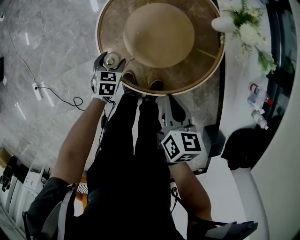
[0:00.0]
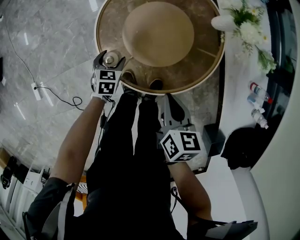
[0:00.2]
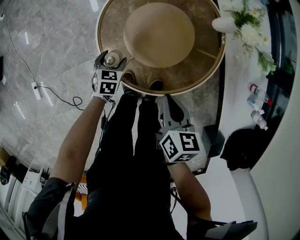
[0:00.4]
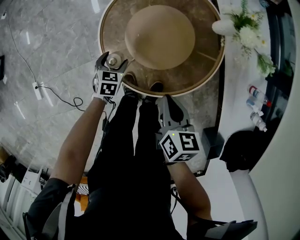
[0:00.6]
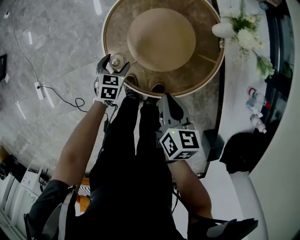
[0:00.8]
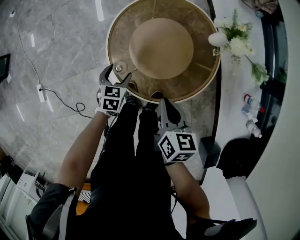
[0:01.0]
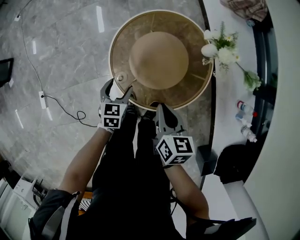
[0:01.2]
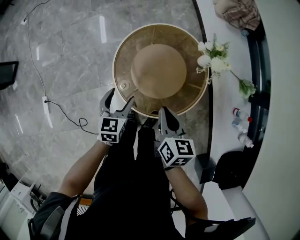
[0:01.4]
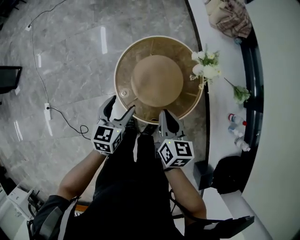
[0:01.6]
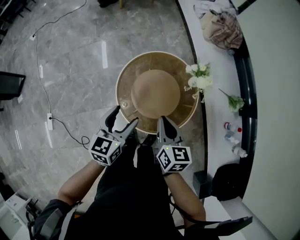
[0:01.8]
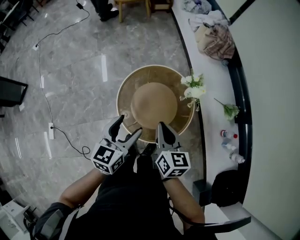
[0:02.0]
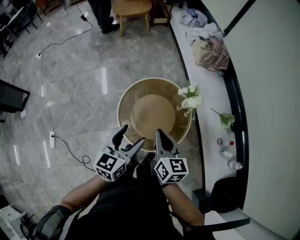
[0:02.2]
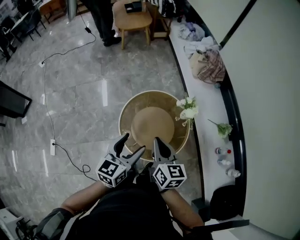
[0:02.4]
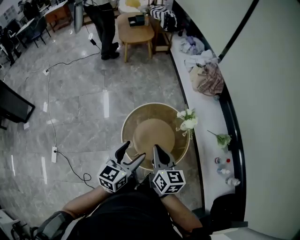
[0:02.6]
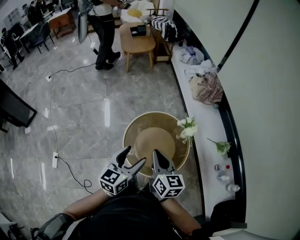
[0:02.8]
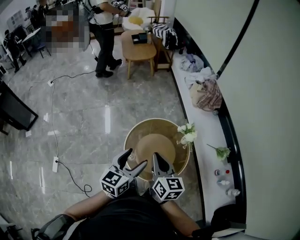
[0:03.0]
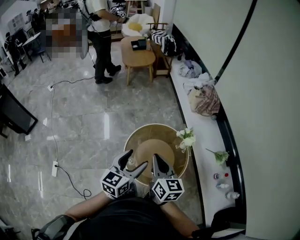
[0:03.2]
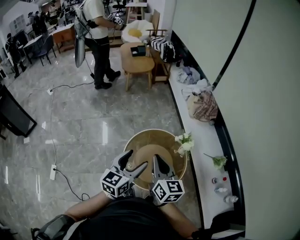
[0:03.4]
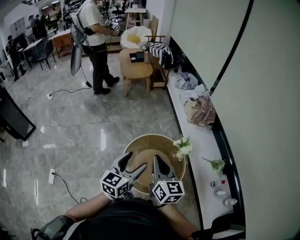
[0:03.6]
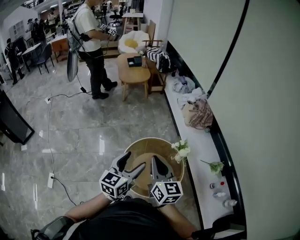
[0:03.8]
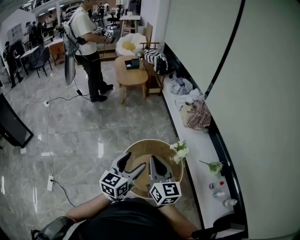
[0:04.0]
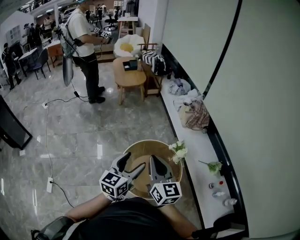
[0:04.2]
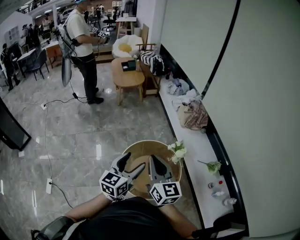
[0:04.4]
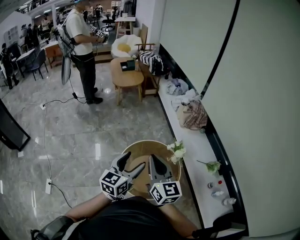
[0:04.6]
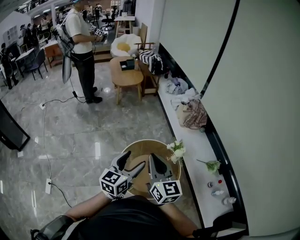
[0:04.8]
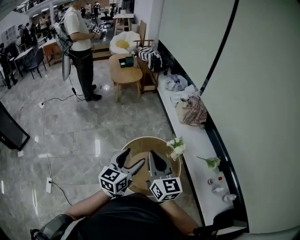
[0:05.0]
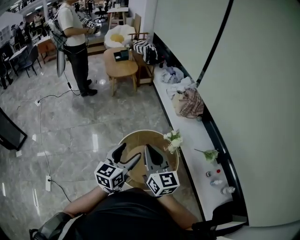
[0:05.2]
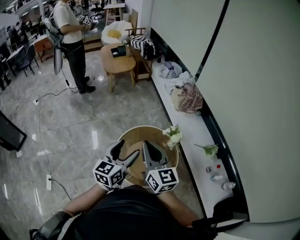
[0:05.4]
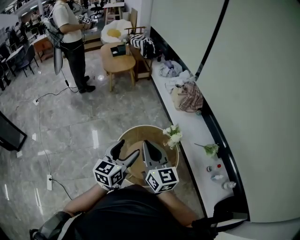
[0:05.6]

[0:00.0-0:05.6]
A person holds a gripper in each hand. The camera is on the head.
0:00.0 to 0:01.4: The right gripper heads upward, covering approximately 10 cm; the left gripper travels upward by roughly 25 cm, and changes its angle by about 20 degrees.
0:01.4 to 0:02.8: Both grippers move upward, some 30 cm. The right gripper rotates about 20 degrees, while the left gripper swivels about 30 degrees.
0:02.8 to 0:04.2: The right gripper moves upward, some 10 cm, and swivels about 20 degrees; the left gripper heads upward, covering some 5 cm.
0:04.2 to 0:05.6: The grippers make only small movements.

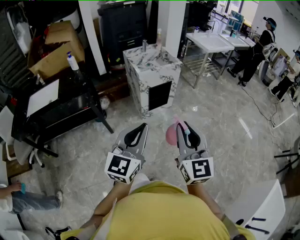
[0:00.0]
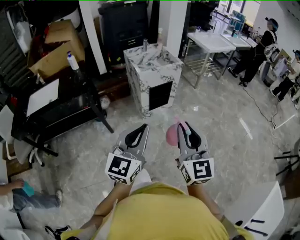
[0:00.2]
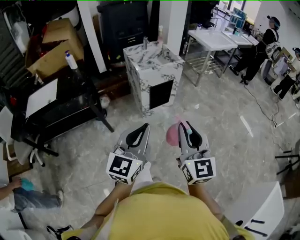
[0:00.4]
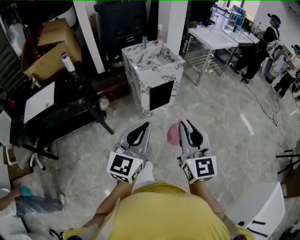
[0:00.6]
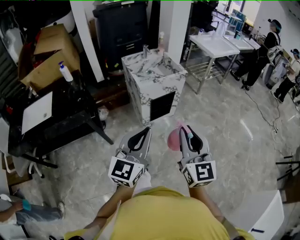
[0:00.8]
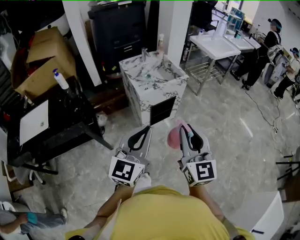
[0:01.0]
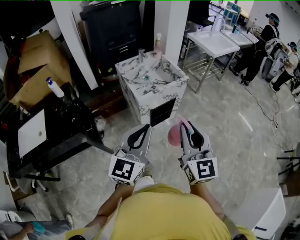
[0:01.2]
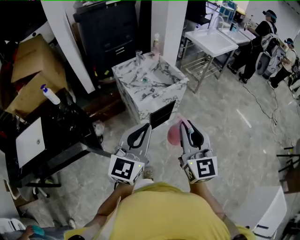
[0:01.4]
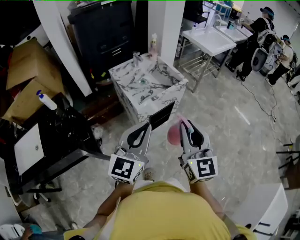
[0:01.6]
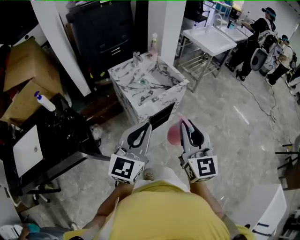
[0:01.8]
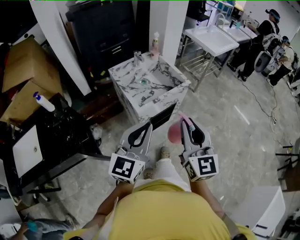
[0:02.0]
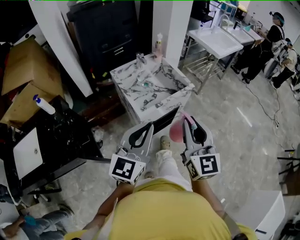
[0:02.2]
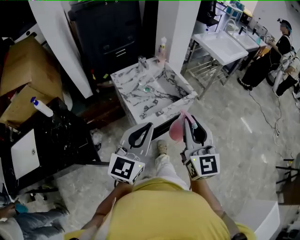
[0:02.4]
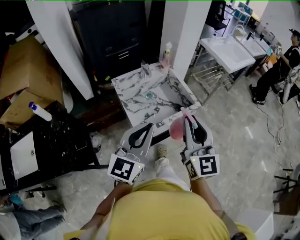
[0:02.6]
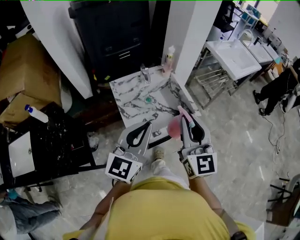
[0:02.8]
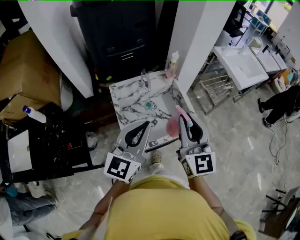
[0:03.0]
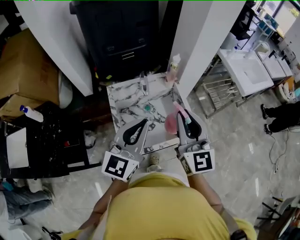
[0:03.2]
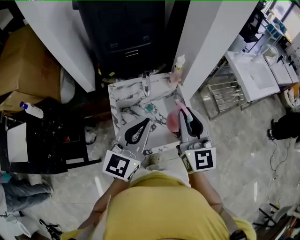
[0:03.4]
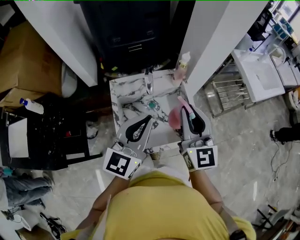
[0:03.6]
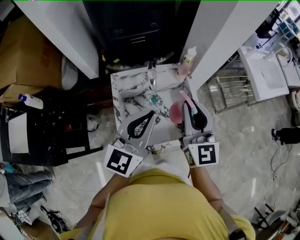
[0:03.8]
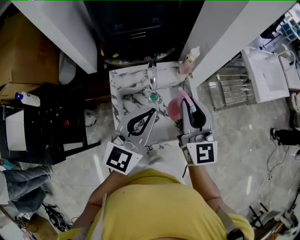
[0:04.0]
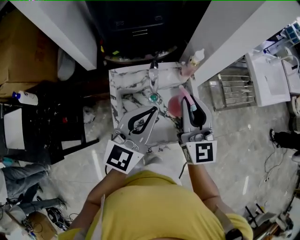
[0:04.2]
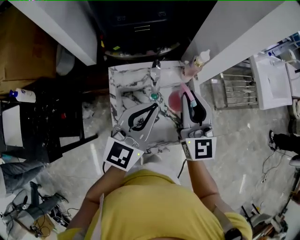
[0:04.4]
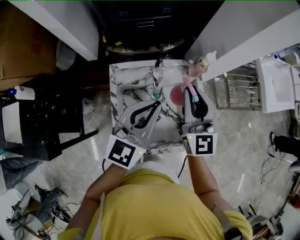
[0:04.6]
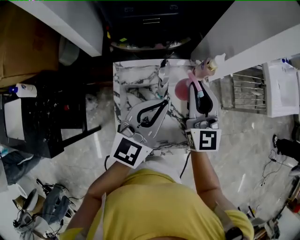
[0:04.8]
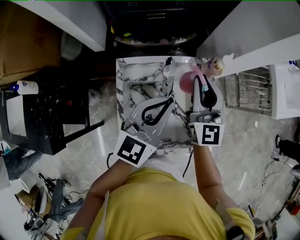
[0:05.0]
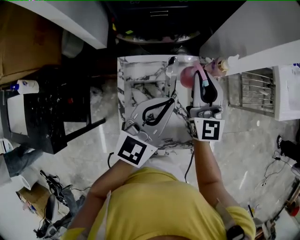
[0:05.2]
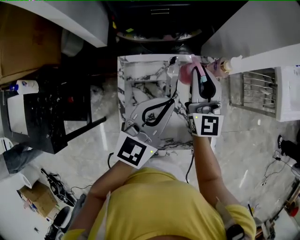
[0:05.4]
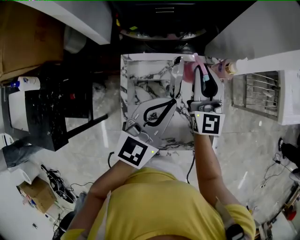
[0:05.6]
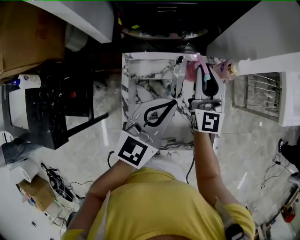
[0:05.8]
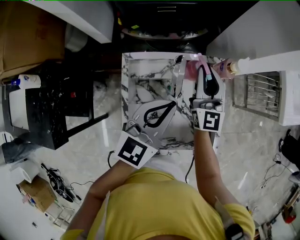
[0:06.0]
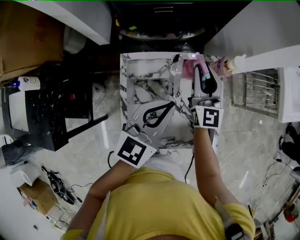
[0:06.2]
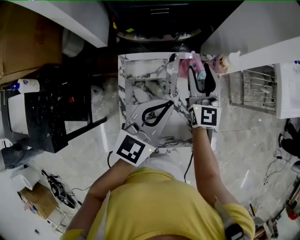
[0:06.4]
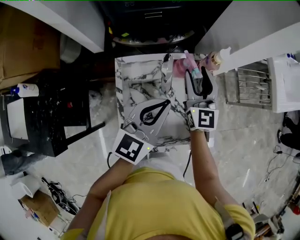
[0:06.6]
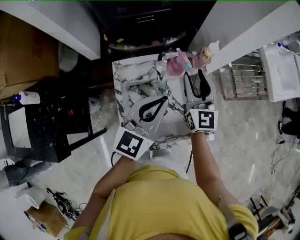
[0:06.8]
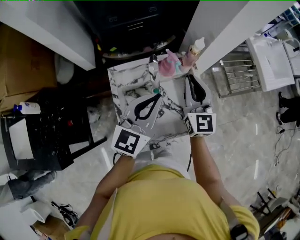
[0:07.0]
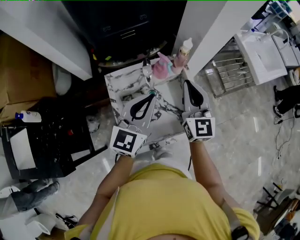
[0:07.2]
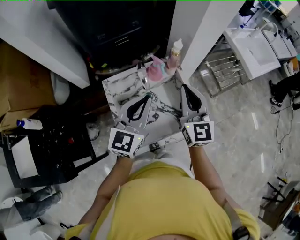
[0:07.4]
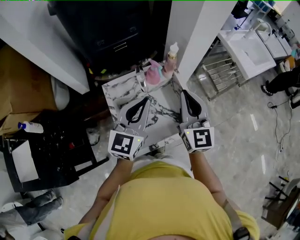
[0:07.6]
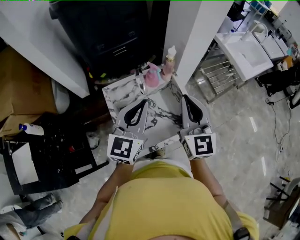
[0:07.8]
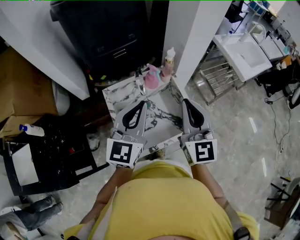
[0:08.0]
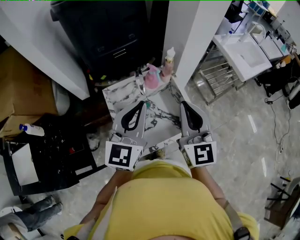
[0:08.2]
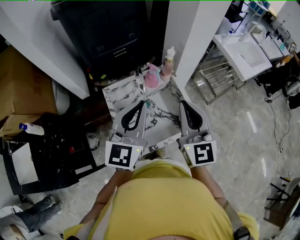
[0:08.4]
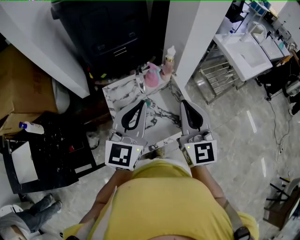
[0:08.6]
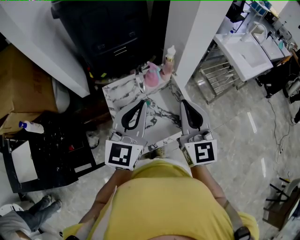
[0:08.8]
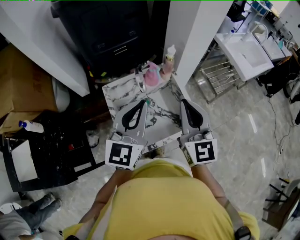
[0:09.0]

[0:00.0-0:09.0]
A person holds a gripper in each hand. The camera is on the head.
0:00.0 to 0:01.6: Both grippers move forward, about 40 cm.
0:01.6 to 0:03.0: Both grippers travel together forward, approximately 35 cm.
0:03.0 to 0:04.4: The left gripper moves forward, roughly 15 cm, while the right gripper travels forward and downward by about 25 cm.
0:04.4 to 0:06.0: The right gripper shifts roughly 15 cm forward and downward; the left gripper goes some 5 cm downward.
0:06.0 to 0:07.6: The right gripper travels backward, upward and to the right by approximately 25 cm, and opens, then closes again. The left gripper heads upward and backward, covering approximately 10 cm.
0:07.6 to 0:09.0: The left gripper shifts some 5 cm upward; the right gripper travels backward by some 5 cm.

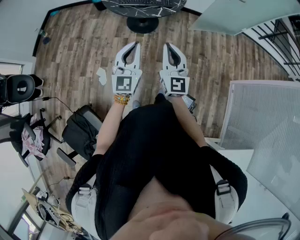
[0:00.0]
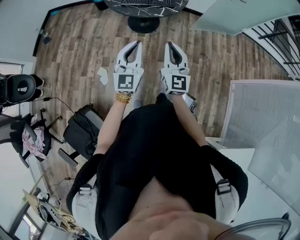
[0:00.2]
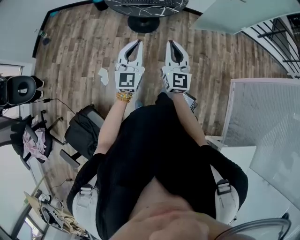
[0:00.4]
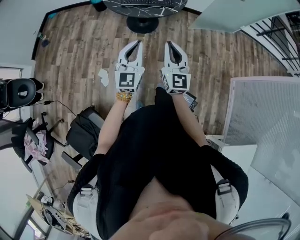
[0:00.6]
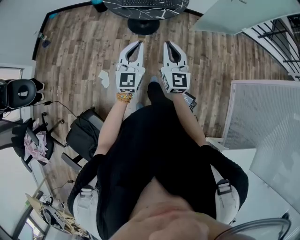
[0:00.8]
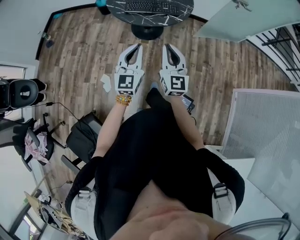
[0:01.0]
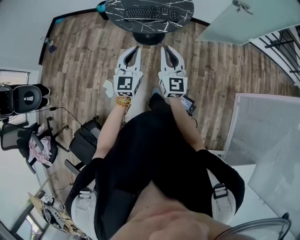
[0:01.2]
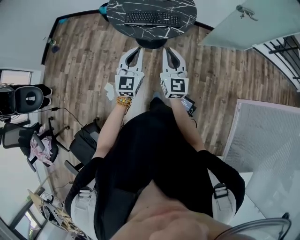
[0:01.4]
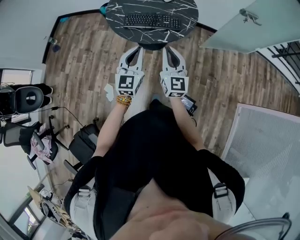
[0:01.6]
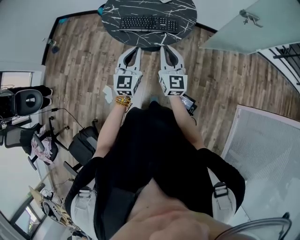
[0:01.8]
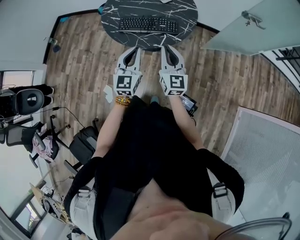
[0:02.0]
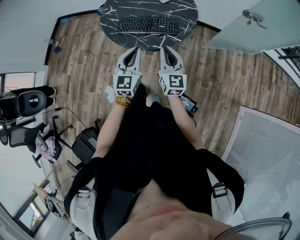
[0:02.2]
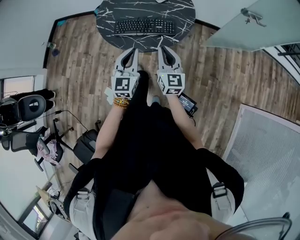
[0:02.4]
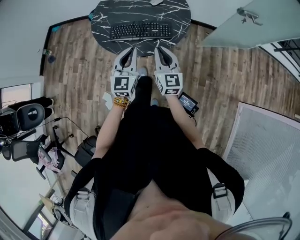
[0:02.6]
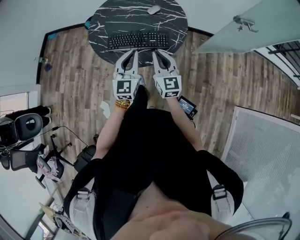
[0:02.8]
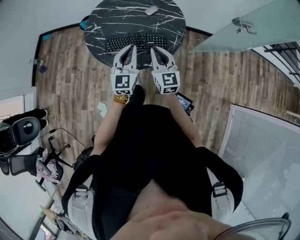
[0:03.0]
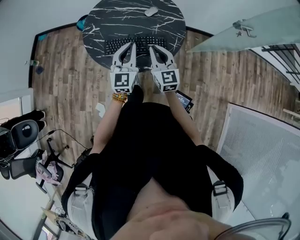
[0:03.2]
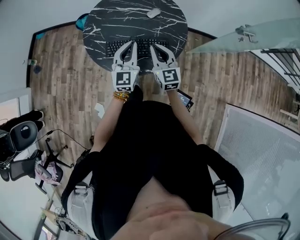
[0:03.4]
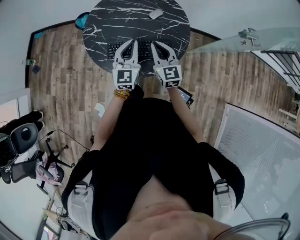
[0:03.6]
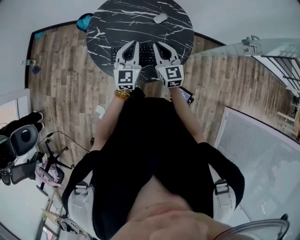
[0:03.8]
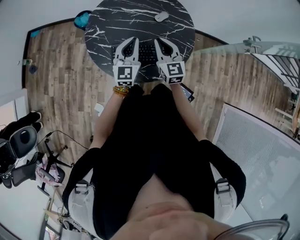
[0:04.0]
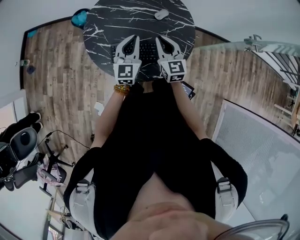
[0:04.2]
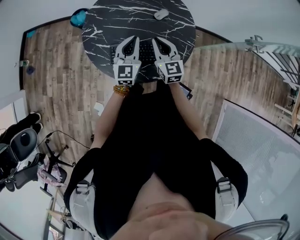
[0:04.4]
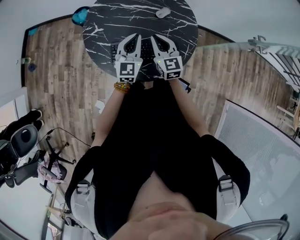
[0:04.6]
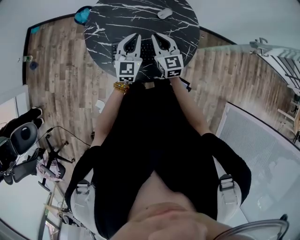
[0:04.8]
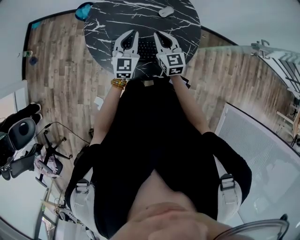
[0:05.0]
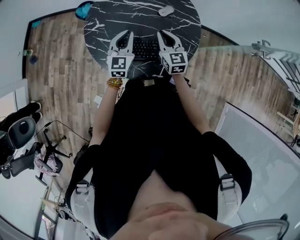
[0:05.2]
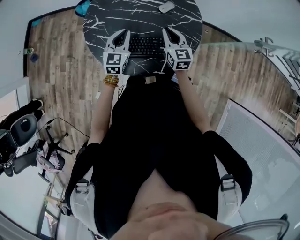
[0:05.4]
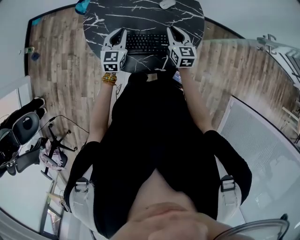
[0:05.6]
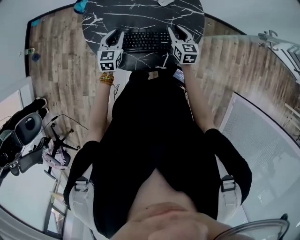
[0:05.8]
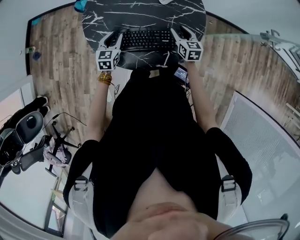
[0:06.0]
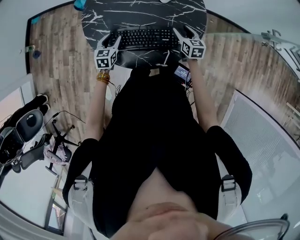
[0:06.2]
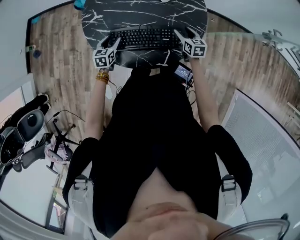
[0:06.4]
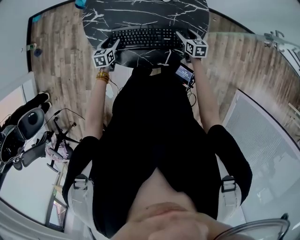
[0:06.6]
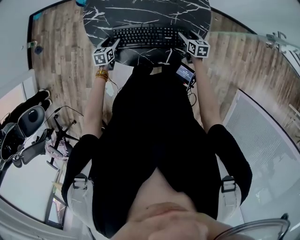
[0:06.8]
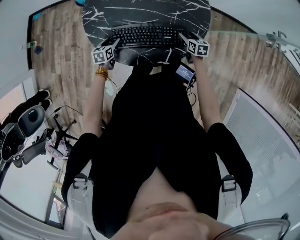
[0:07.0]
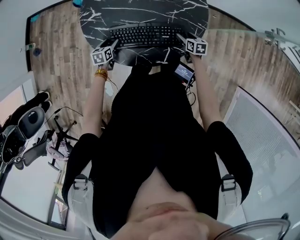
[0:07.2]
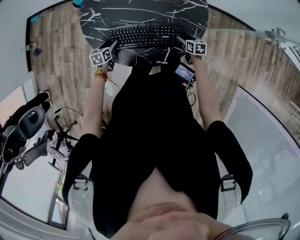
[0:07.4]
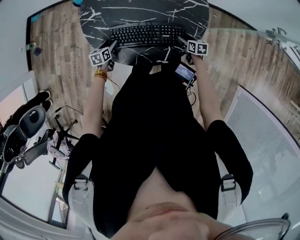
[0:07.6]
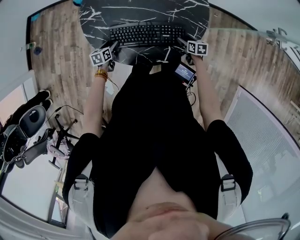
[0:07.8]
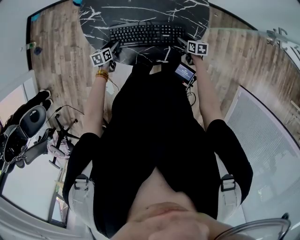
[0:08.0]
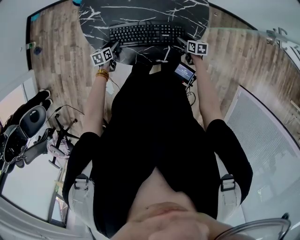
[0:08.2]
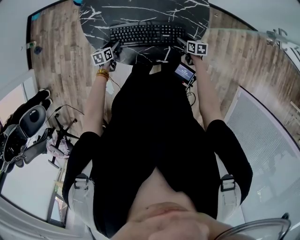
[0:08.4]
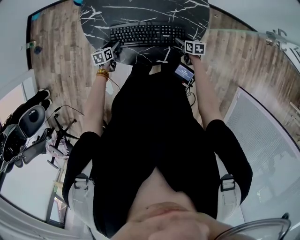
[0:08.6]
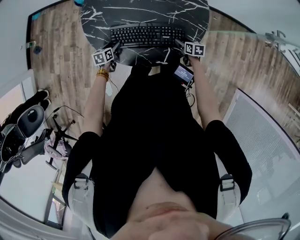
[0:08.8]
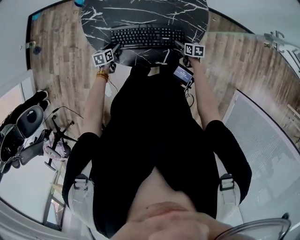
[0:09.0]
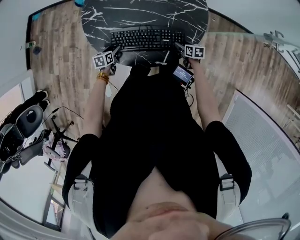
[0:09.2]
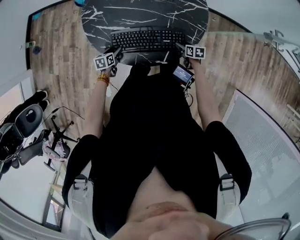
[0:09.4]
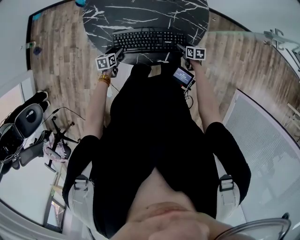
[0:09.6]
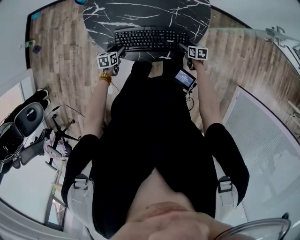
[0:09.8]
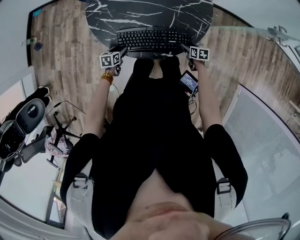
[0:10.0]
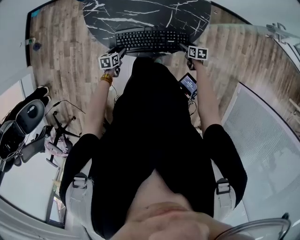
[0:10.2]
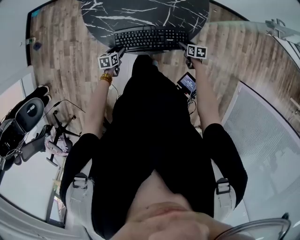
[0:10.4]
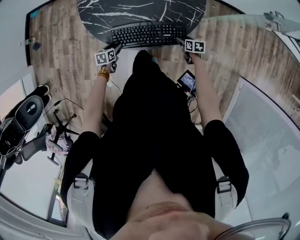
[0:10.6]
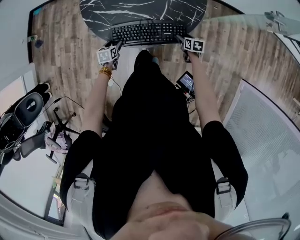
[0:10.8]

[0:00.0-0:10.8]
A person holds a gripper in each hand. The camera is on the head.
0:00.0 to 0:01.6: The two grippers go roughly 25 cm forward.
0:01.6 to 0:03.0: Both grippers travel together forward, roughly 20 cm.
0:03.0 to 0:04.6: The two grippers go approximately 20 cm forward.
0:04.6 to 0:06.2: The left gripper heads downward and to the left, covering roughly 20 cm, tips its fingers downward by roughly 30 degrees, and opens its fingers. Meanwhile the right gripper heads downward and to the right, covering about 20 cm, turns by roughly 30 degrees, and opens up.
0:06.2 to 0:07.8: The left gripper heads downward, covering approximately 10 cm, and turns by roughly 30 degrees. The right gripper shifts some 15 cm downward and backward, and turns by roughly 30 degrees.
0:07.8 to 0:09.2: The grippers move only a little.
0:09.2 to 0:10.8: The two grippers go roughly 10 cm backward.
